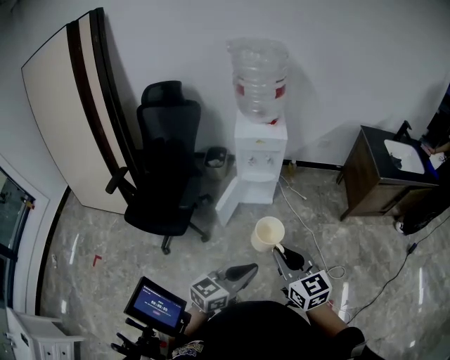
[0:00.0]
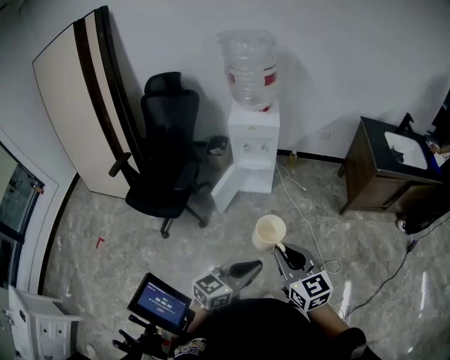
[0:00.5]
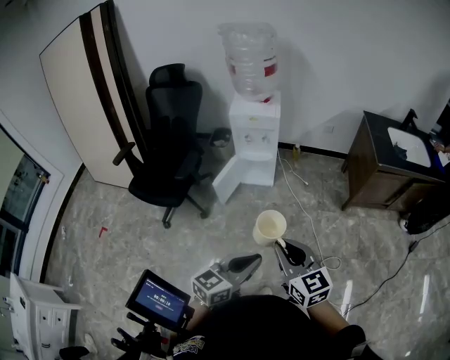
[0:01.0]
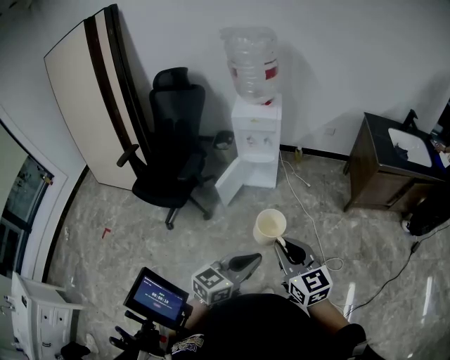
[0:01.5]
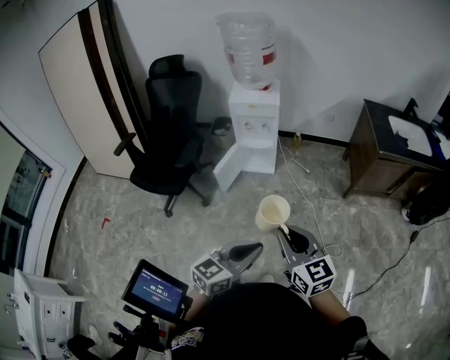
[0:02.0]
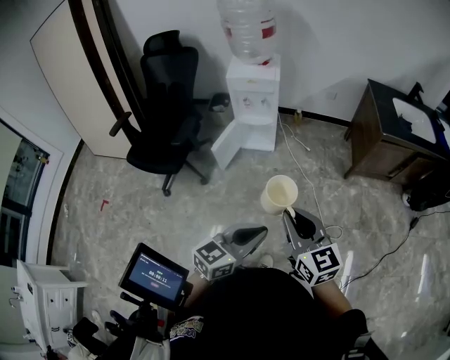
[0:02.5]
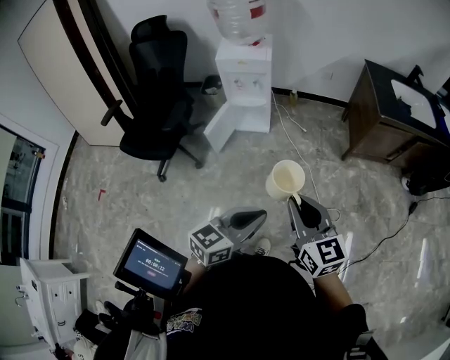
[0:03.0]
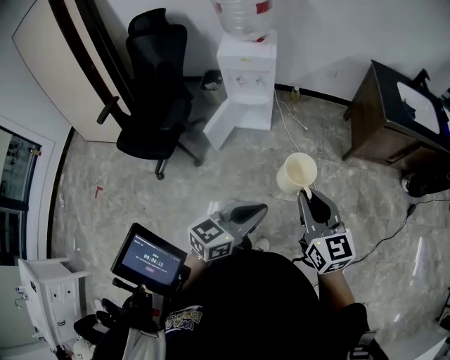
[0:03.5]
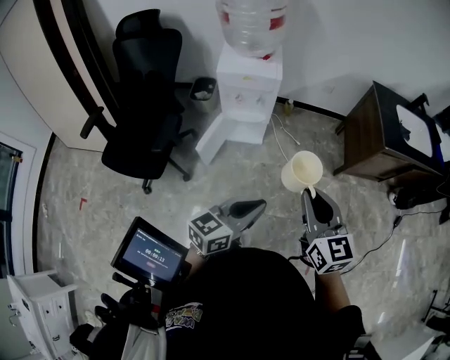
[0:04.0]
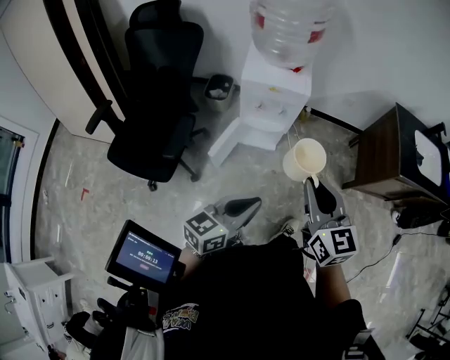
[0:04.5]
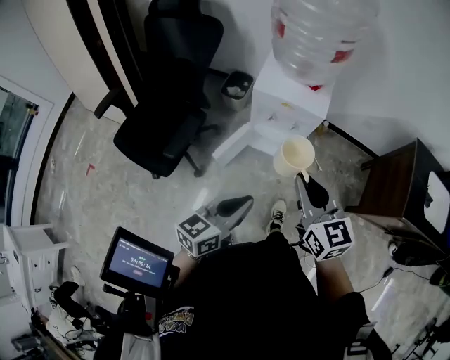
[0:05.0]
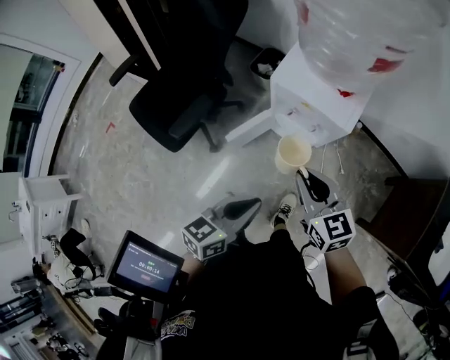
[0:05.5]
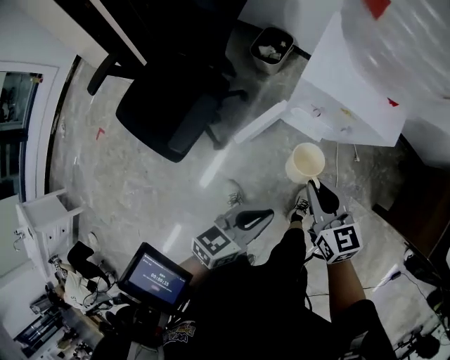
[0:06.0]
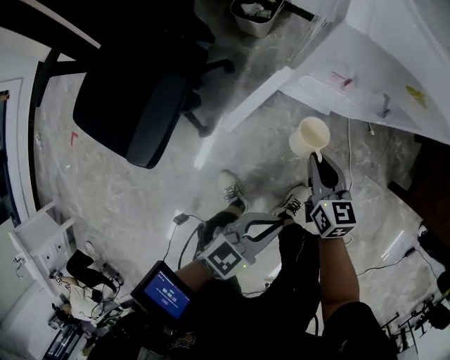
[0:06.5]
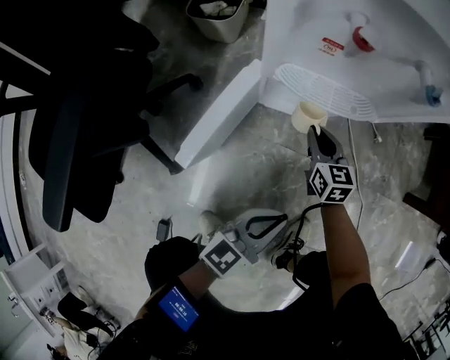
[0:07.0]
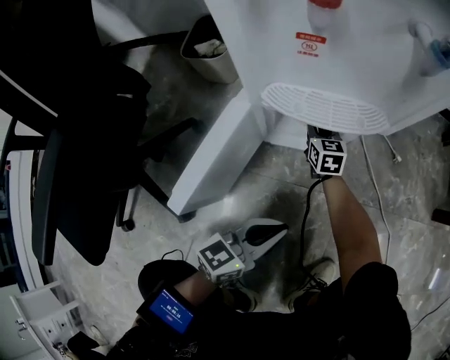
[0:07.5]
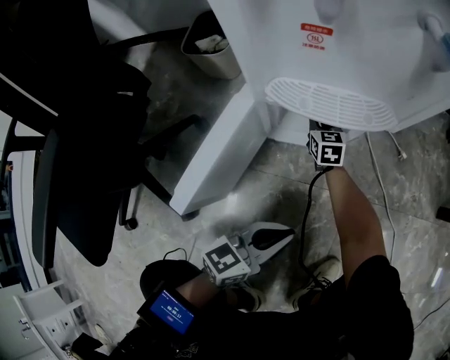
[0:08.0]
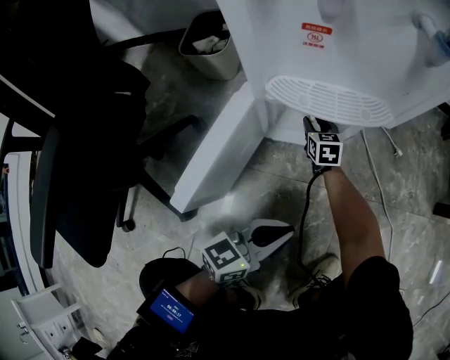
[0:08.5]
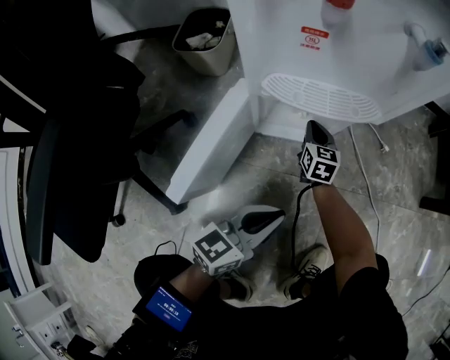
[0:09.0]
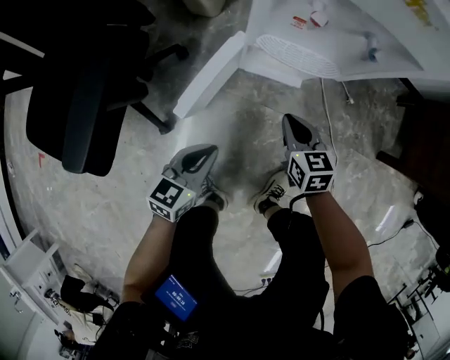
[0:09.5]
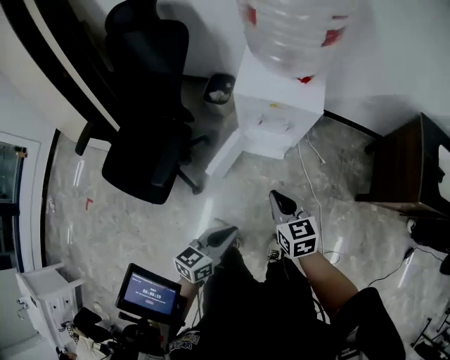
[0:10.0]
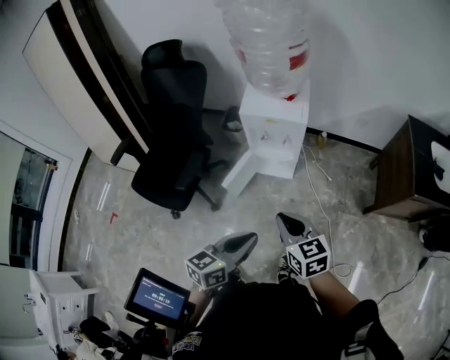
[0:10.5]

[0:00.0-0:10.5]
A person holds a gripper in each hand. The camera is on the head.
0:00.0 to 0:02.0: The grippers both shift to the right and backward by approximately 15 cm.
0:02.0 to 0:04.0: Both grippers move forward, approximately 20 cm.
0:04.0 to 0:06.5: The two grippers go approximately 40 cm downward. The right gripper swivels approximately 30 degrees.
0:06.5 to 0:08.5: The left gripper shifts some 30 cm downward, while the right gripper shifts about 50 cm downward and forward, and opens its fingers.
0:08.5 to 0:10.5: The left gripper is displaced upward by roughly 60 cm, while the right gripper goes about 90 cm upward and backward, turns by about 20 degrees, and closes up.

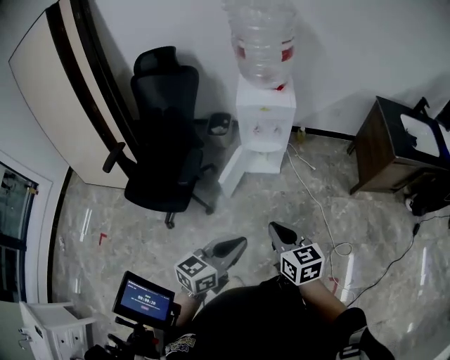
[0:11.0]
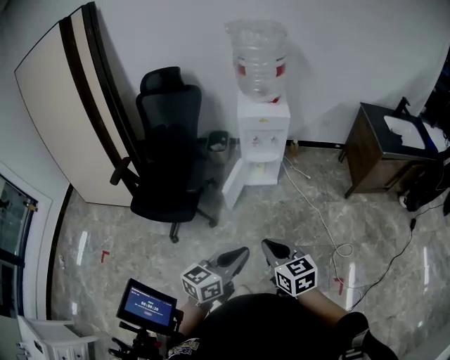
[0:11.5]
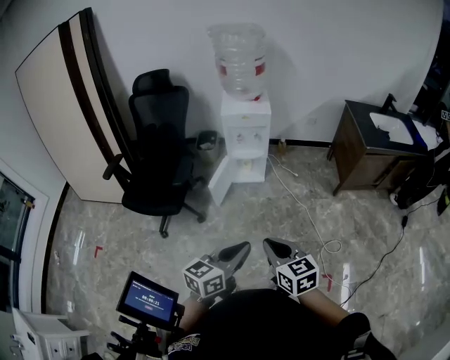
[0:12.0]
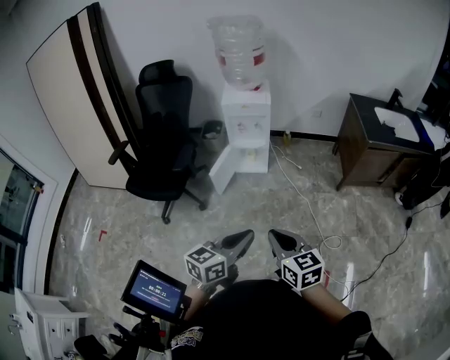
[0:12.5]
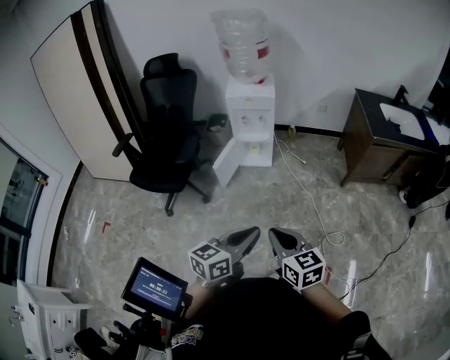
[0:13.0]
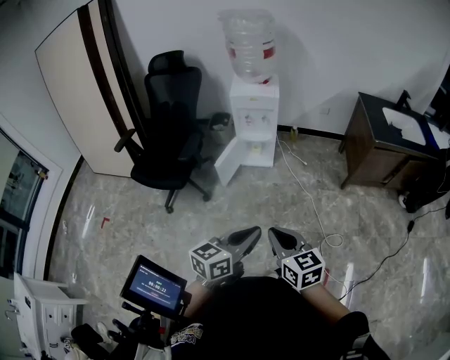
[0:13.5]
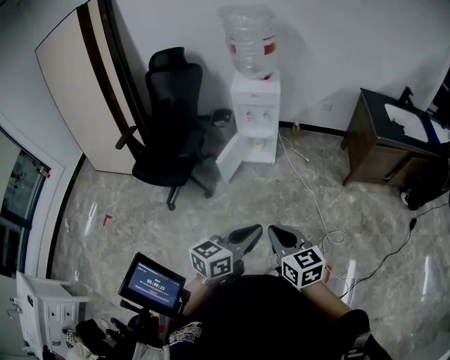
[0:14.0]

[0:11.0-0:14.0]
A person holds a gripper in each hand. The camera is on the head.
0:11.0 to 0:12.5: The right gripper heads backward and to the right, covering some 20 cm, while the left gripper heads to the right and backward, covering some 20 cm.
0:12.5 to 0:14.0: There are only small adjustments of the grippers.

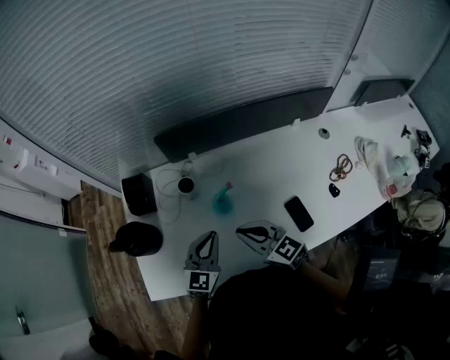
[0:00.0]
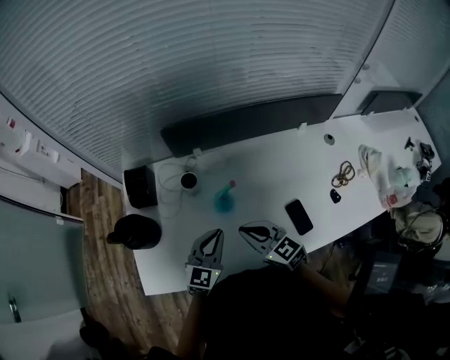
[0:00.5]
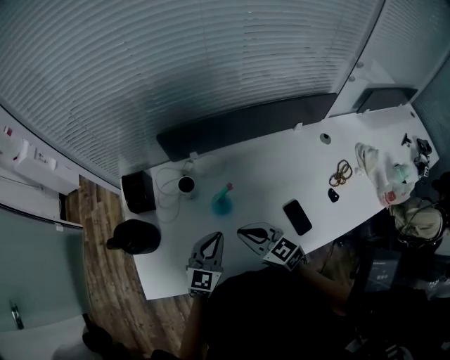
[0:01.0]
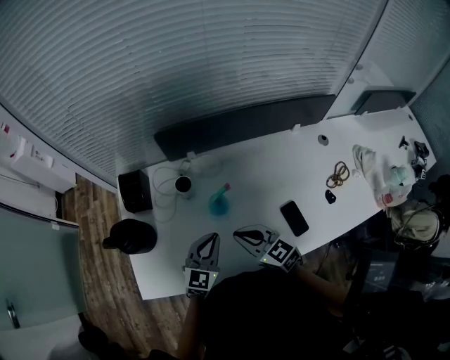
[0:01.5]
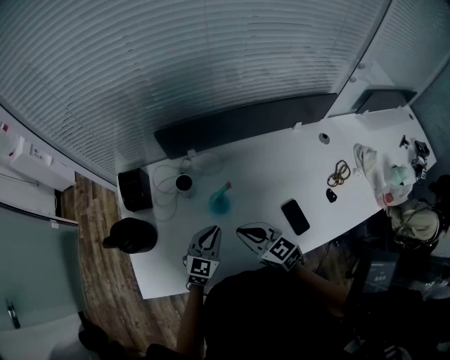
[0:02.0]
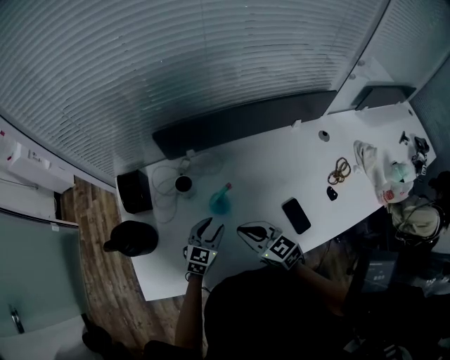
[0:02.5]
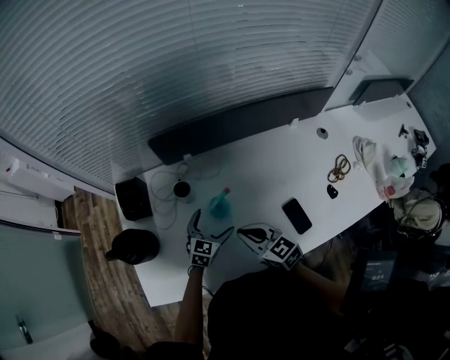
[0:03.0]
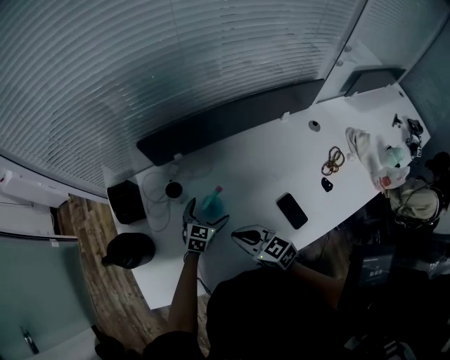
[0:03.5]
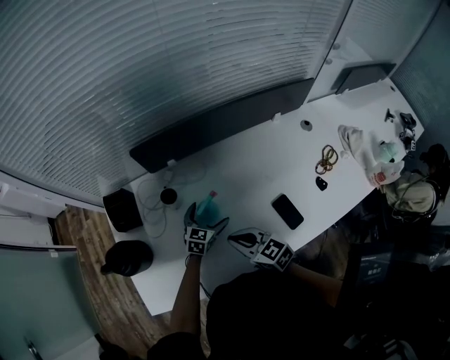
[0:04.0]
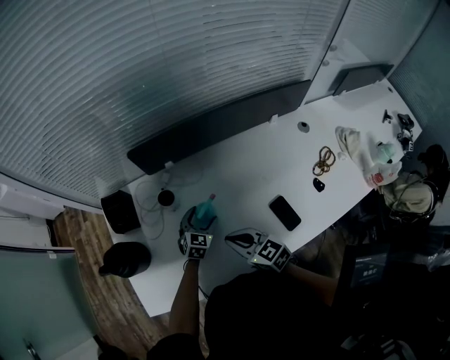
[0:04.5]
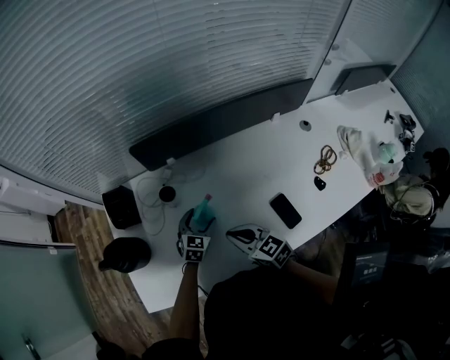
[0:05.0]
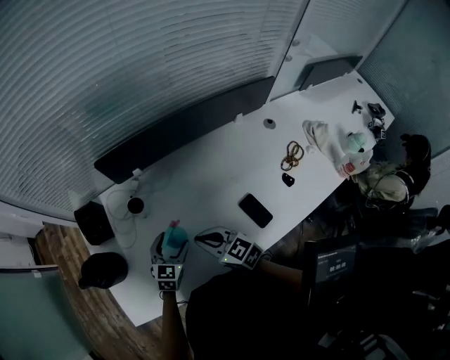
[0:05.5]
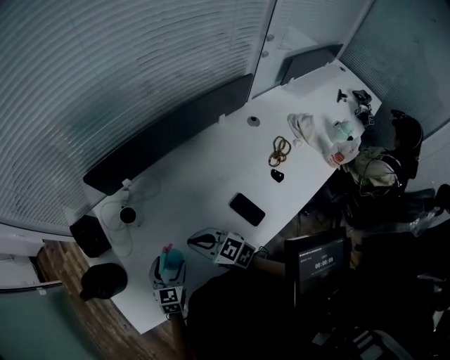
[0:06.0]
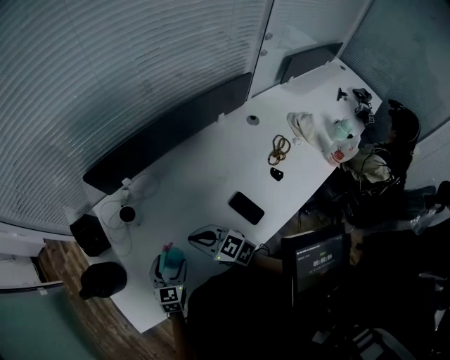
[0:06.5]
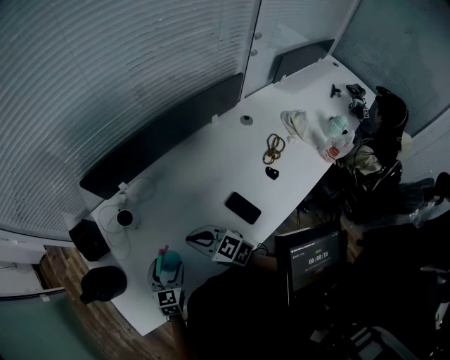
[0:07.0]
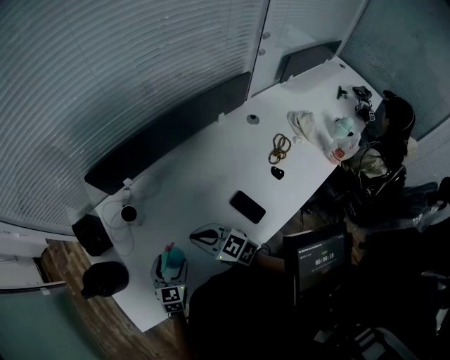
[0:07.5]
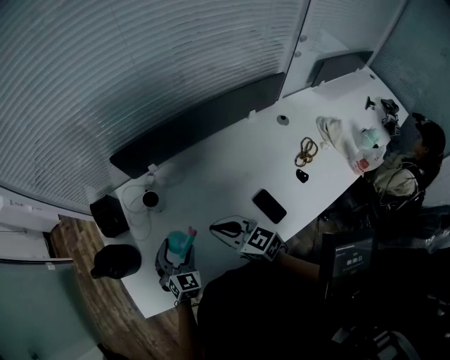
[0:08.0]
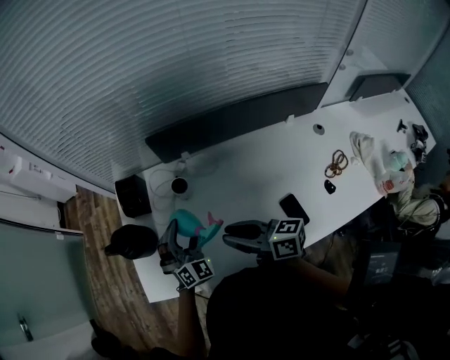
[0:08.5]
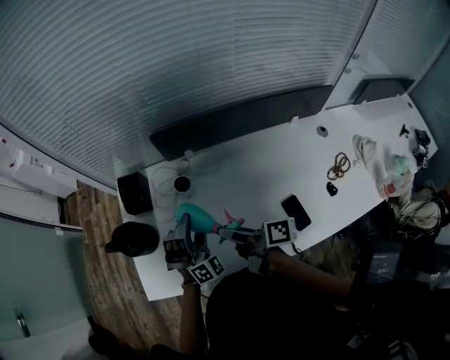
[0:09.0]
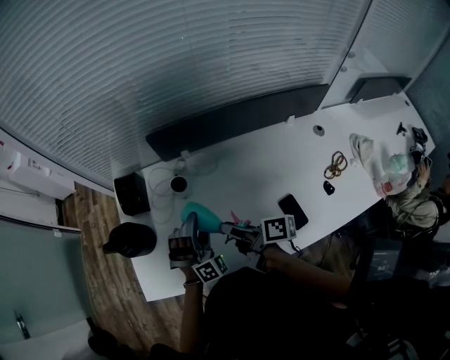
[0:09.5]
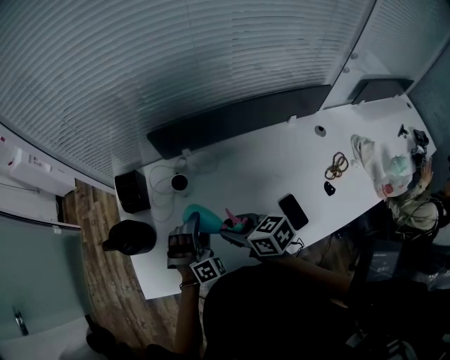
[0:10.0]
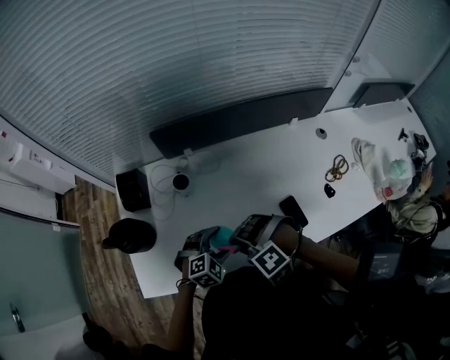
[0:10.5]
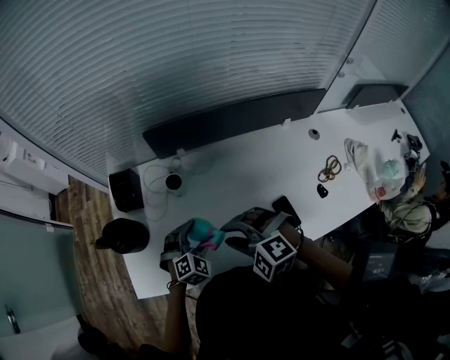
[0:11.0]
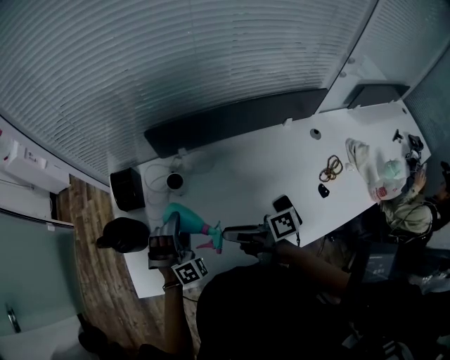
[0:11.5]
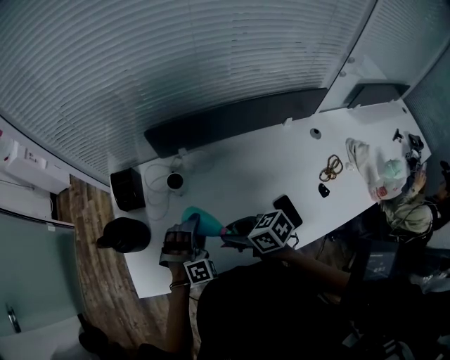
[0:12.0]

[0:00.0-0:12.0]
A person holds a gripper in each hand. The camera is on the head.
0:00.0 to 0:02.0: The left gripper heads downward, covering approximately 5 cm.
0:02.0 to 0:04.0: The left gripper heads downward, forward and to the right, covering roughly 15 cm, and opens.
0:04.0 to 0:06.0: The left gripper shifts roughly 15 cm backward, to the left and upward, and closes up.
0:06.0 to 0:08.0: The left gripper swivels approximately 20 degrees.
0:08.0 to 0:10.0: The left gripper changes place by approximately 5 cm, and twists roughly 40 degrees clockwise, seen from behind; the right gripper turns by about 20 degrees, and opens its fingers.
0:10.0 to 0:12.0: The left gripper reaches some 5 cm downward, then returns.

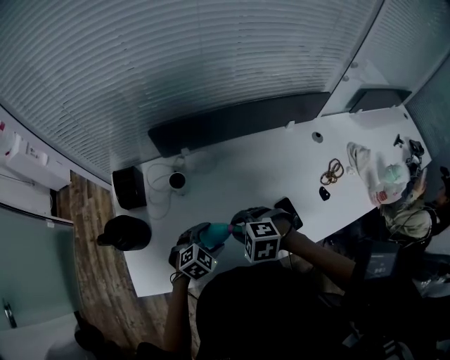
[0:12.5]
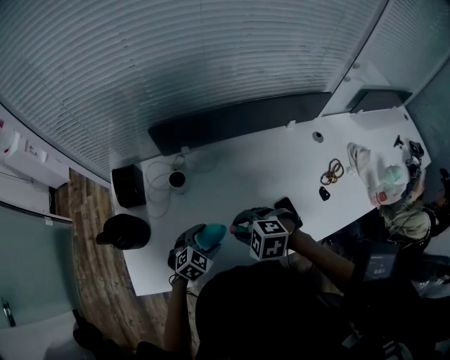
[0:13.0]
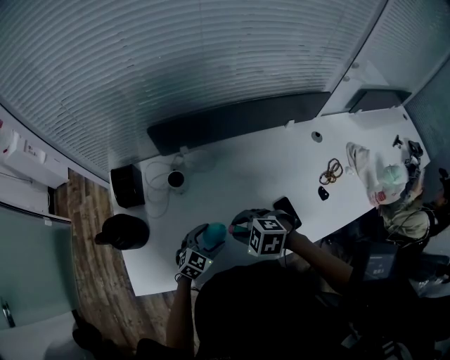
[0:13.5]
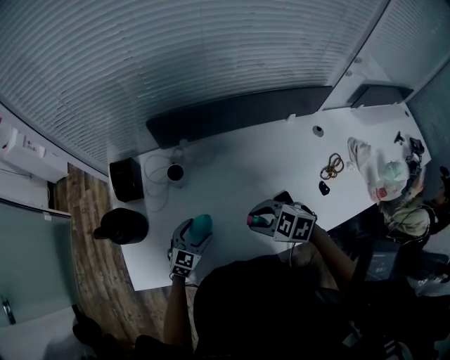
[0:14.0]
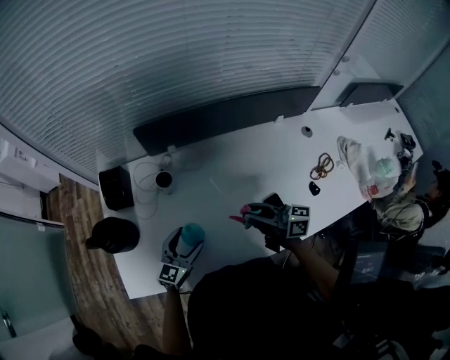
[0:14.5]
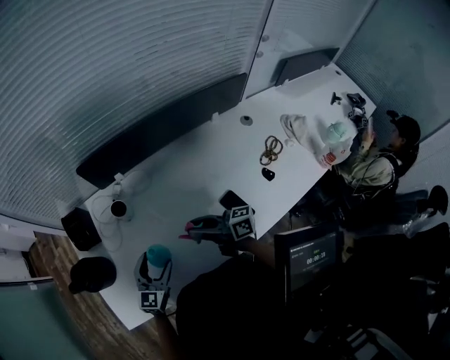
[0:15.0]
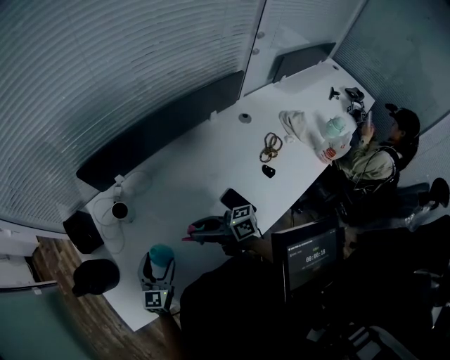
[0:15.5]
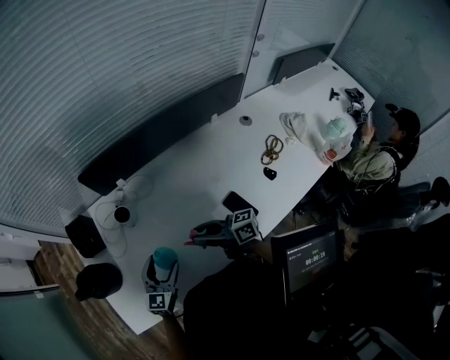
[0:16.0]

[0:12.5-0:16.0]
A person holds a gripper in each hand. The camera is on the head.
0:12.5 to 0:14.5: The right gripper is displaced to the right by about 10 cm, and points its fingers approximately 70 degrees further upward. The left gripper shifts by approximately 5 cm, and tips its fingers upward by some 40 degrees.
0:14.5 to 0:16.0: The right gripper travels downward by some 5 cm.
